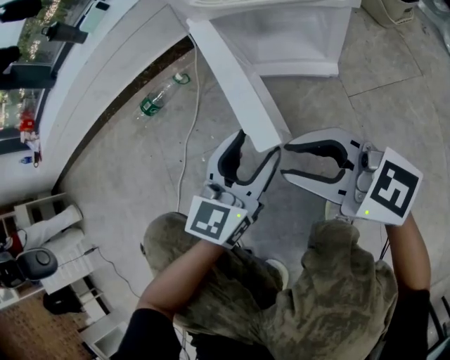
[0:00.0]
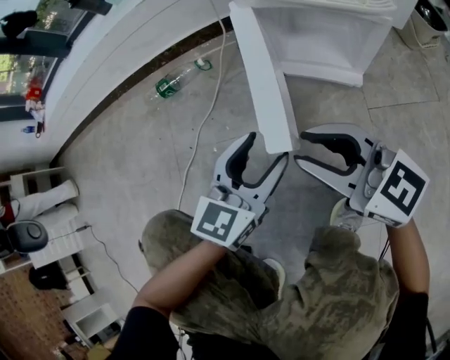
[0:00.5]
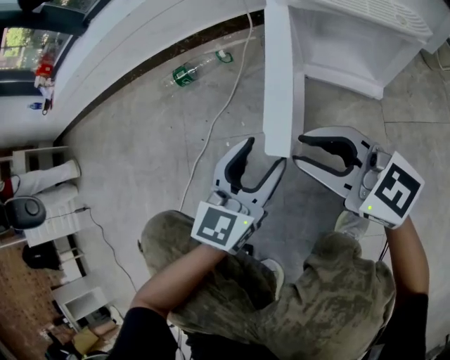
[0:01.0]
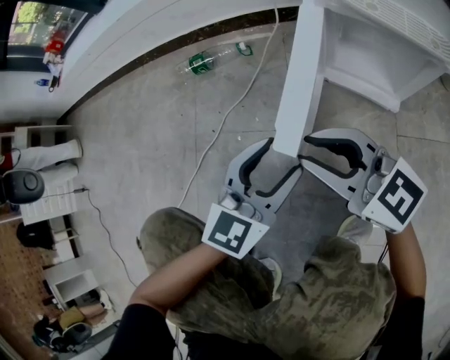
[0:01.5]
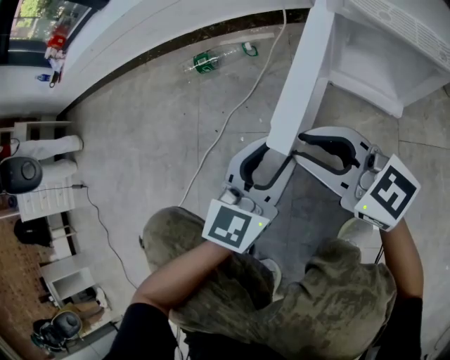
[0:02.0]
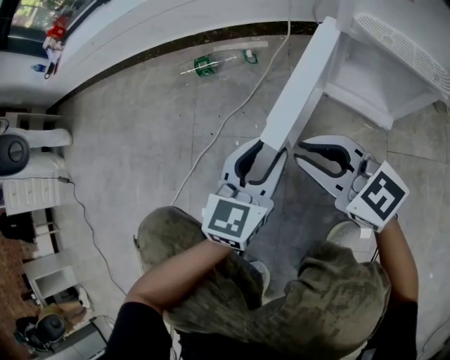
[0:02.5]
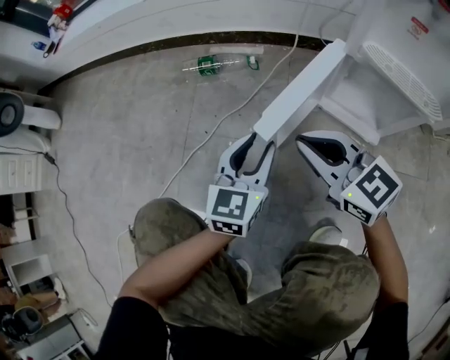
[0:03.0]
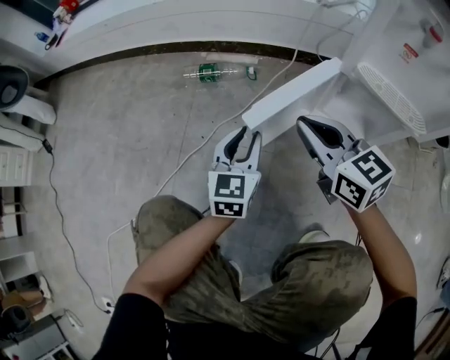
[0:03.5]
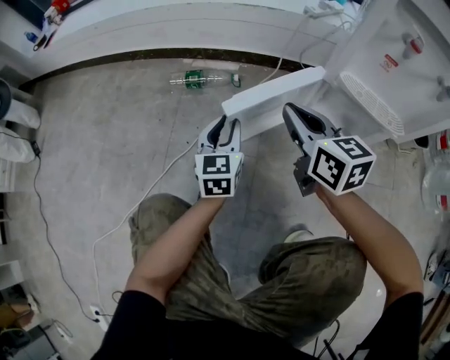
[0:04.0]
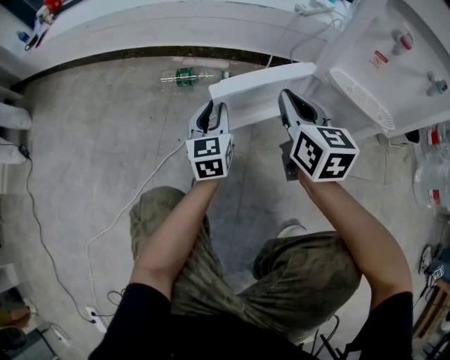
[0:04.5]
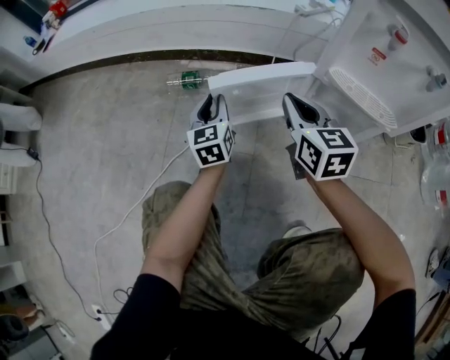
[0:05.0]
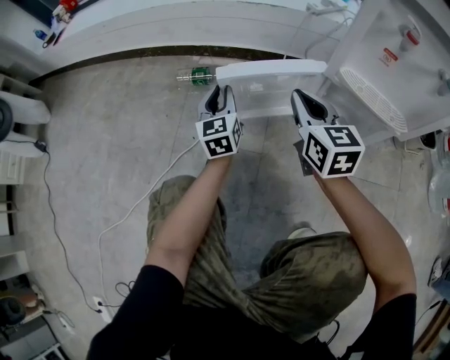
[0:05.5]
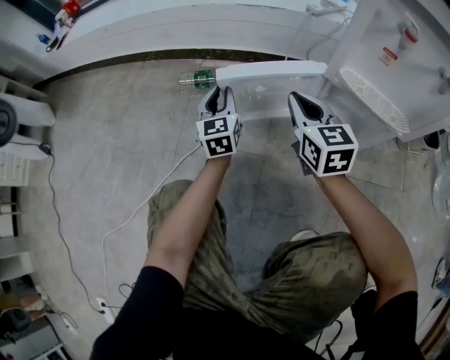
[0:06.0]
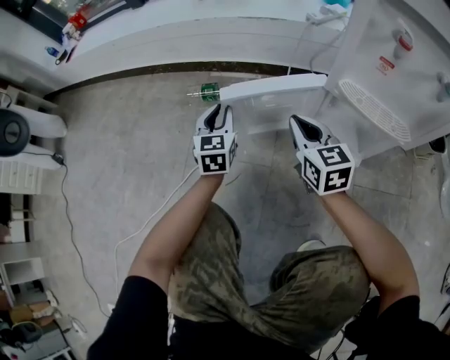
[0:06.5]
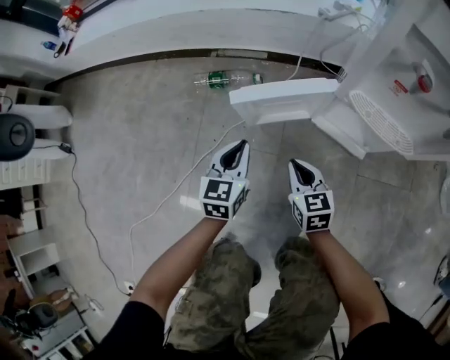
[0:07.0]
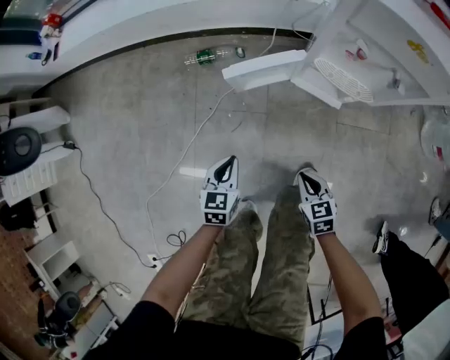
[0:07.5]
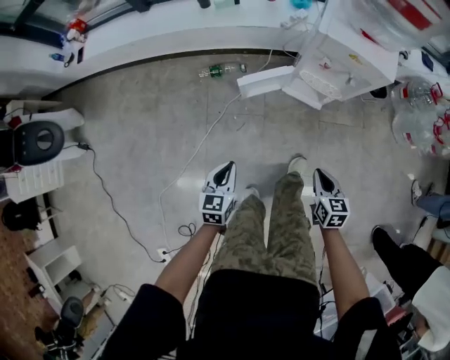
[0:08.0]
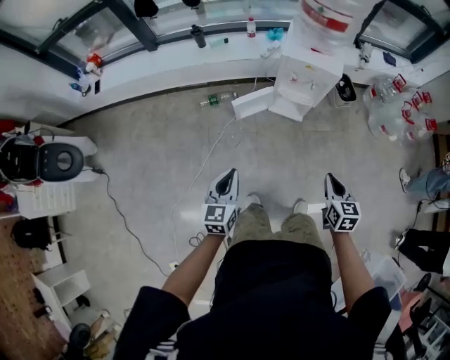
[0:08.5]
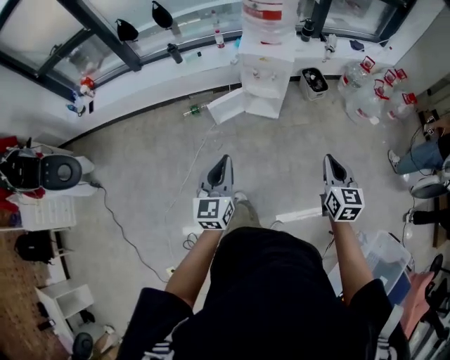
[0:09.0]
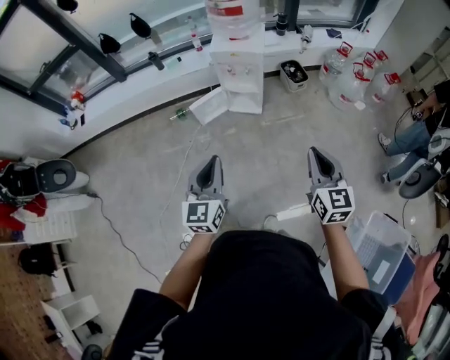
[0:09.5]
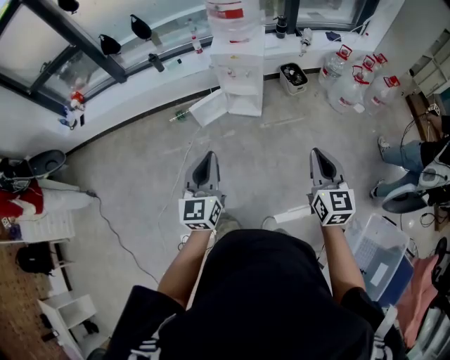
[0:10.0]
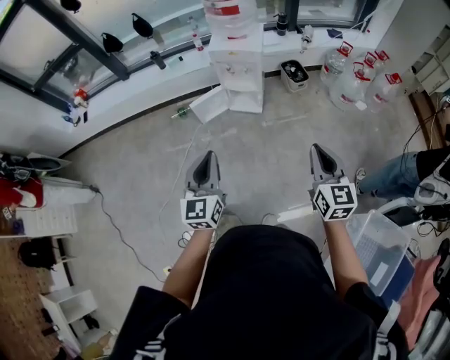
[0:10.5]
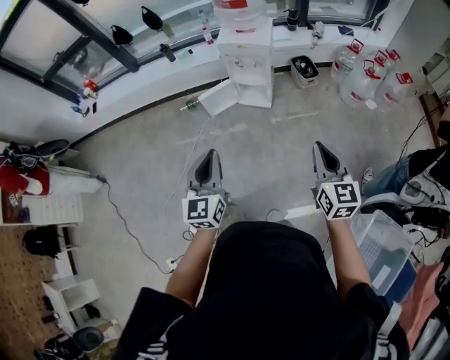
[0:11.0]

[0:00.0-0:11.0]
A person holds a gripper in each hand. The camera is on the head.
0:00.0 to 0:02.0: The left gripper heads to the left, covering about 10 cm, while the right gripper shifts approximately 15 cm to the left and forward.
0:02.0 to 0:03.5: The left gripper is displaced forward and to the left by about 10 cm, and rotates roughly 20 degrees; the right gripper goes about 10 cm forward and upward, and closes.
0:03.5 to 0:05.5: The right gripper travels forward by approximately 5 cm, and rotates about 20 degrees, while the left gripper shifts roughly 15 cm forward.
0:05.5 to 0:07.5: The left gripper heads backward and upward, covering some 30 cm, and tips its fingers downward by about 30 degrees; the right gripper shifts roughly 30 cm backward, and tilts its fingers approximately 30 degrees downward.
0:07.5 to 0:09.0: The grippers both shift upward by about 60 cm. The right gripper changes its angle by approximately 40 degrees, while the left gripper angles its fingers upward, by roughly 30 degrees.
0:09.0 to 0:11.0: The two grippers go approximately 10 cm backward and to the right.

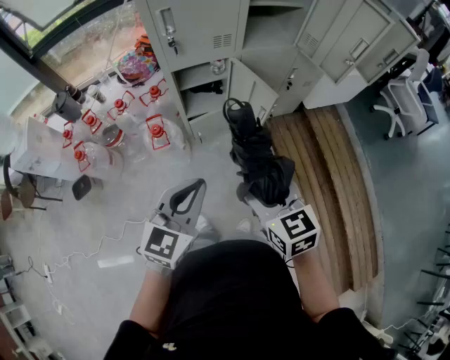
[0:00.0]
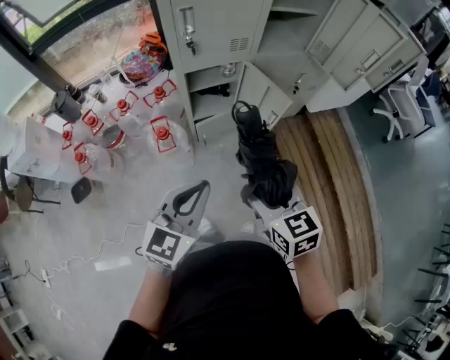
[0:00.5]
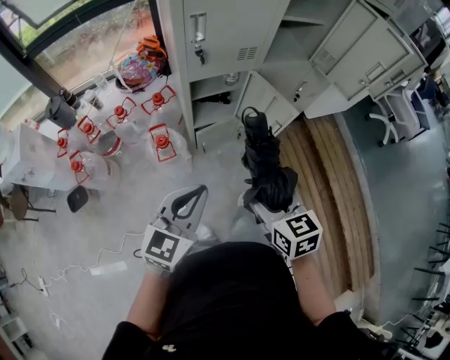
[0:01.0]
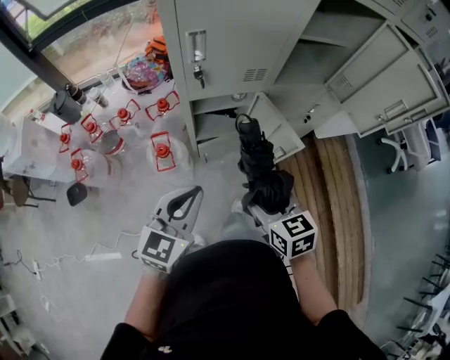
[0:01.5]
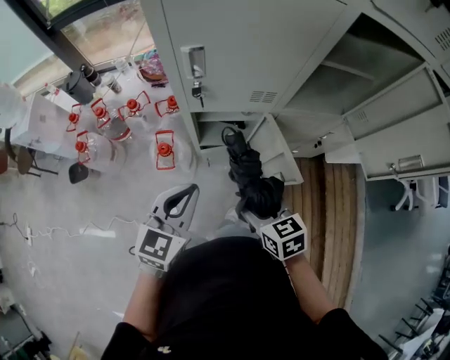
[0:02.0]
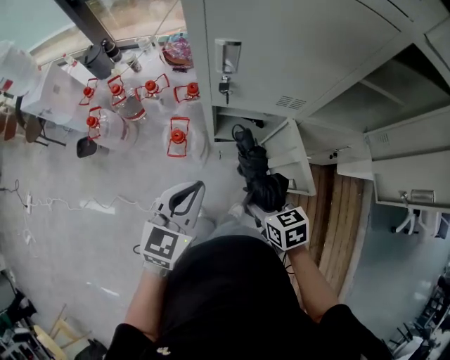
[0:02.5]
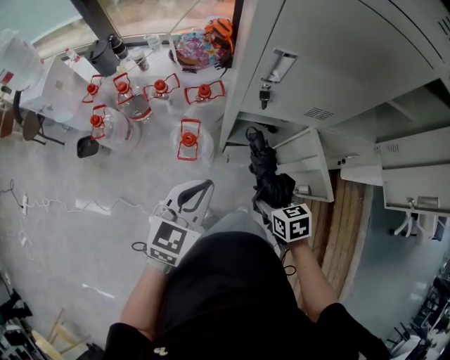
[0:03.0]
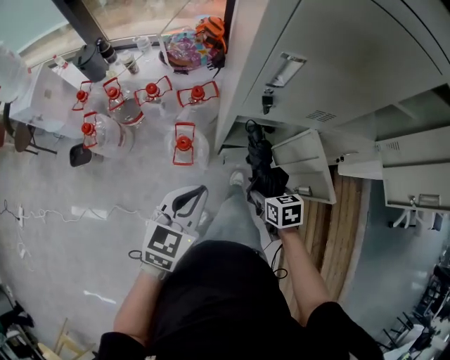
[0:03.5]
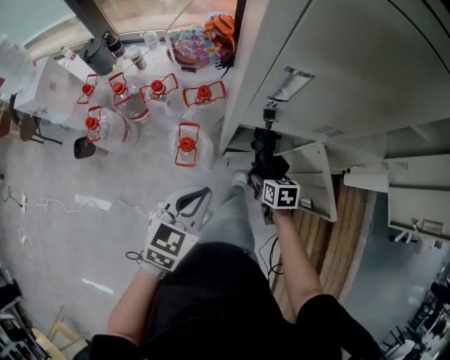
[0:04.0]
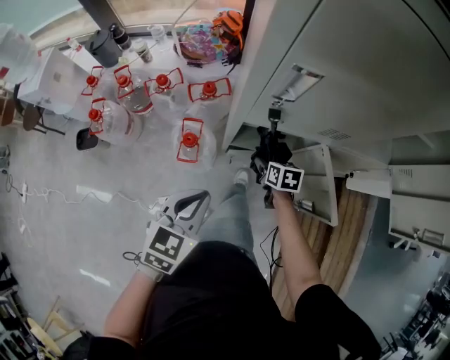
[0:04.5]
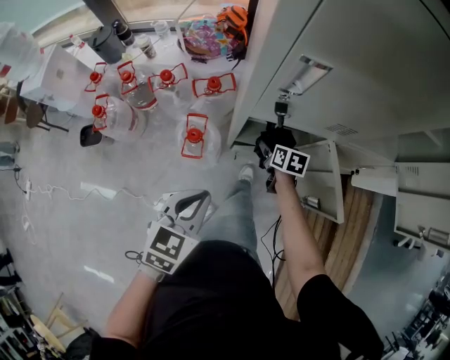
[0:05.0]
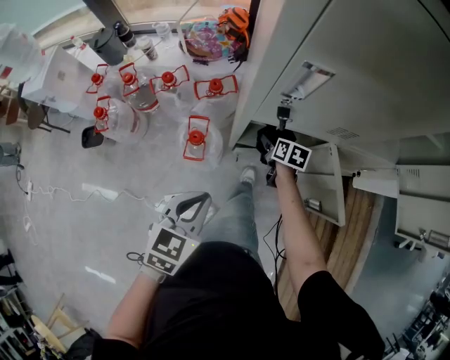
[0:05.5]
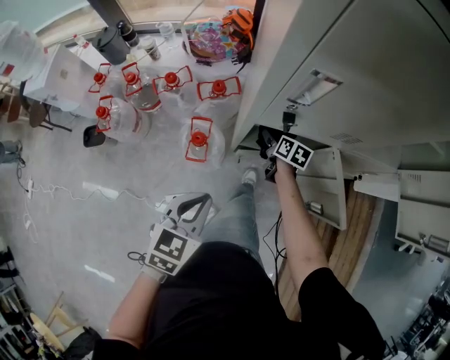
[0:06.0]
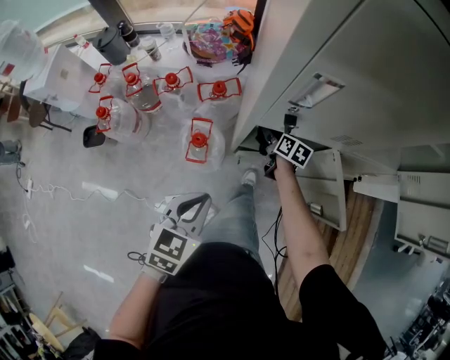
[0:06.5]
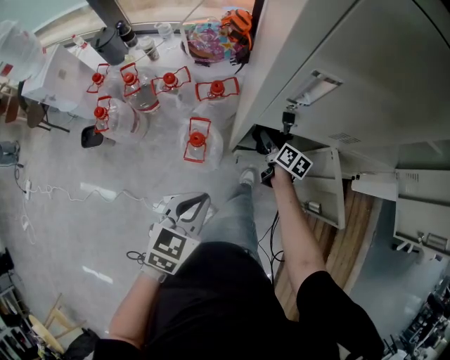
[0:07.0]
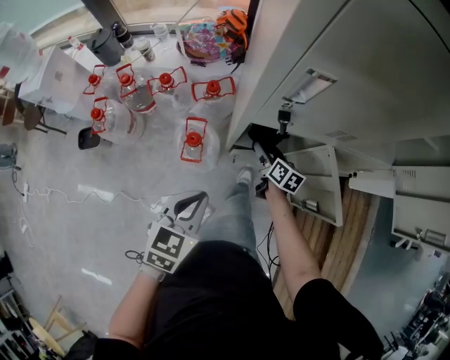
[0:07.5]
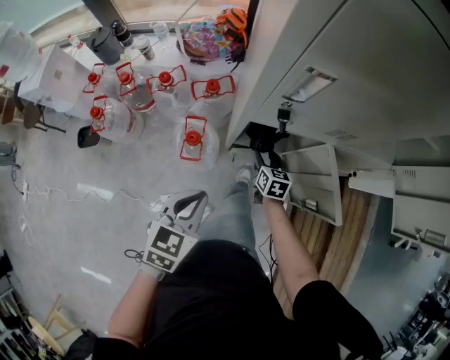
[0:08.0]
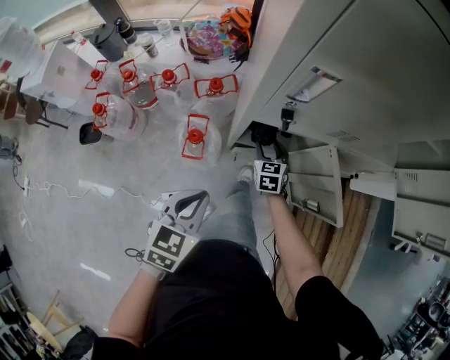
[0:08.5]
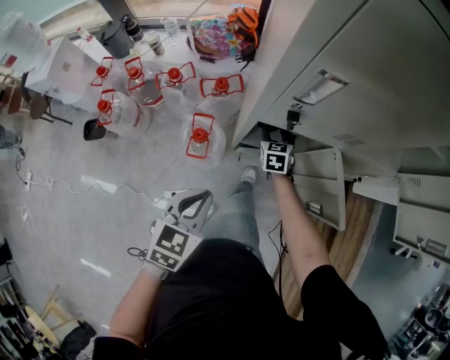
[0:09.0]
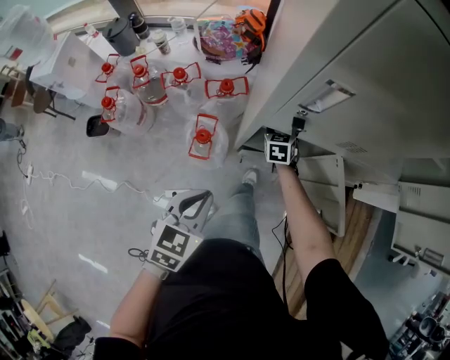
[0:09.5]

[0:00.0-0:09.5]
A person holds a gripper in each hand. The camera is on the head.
0:00.0 to 0:02.0: The left gripper travels forward by some 25 cm, while the right gripper is displaced forward and downward by some 25 cm, and swivels roughly 20 degrees.
0:02.0 to 0:04.0: The left gripper is displaced to the left, downward and forward by some 15 cm, while the right gripper heads downward and forward, covering about 25 cm.
0:04.0 to 0:05.5: The right gripper shifts some 10 cm forward.
0:07.5 to 0:09.5: The right gripper moves forward, some 10 cm, twists some 50 degrees counterclockwise, seen from behind, and closes up.

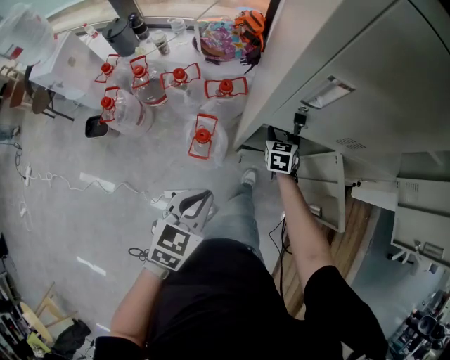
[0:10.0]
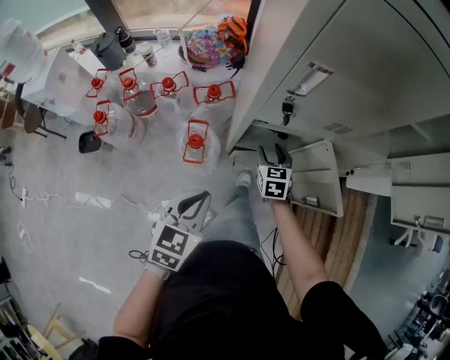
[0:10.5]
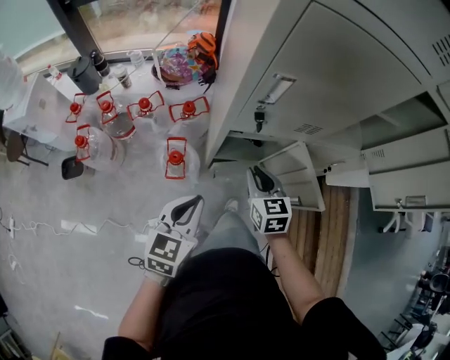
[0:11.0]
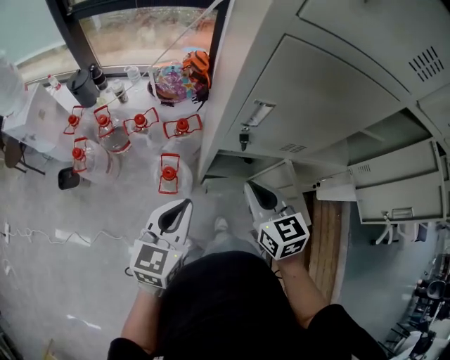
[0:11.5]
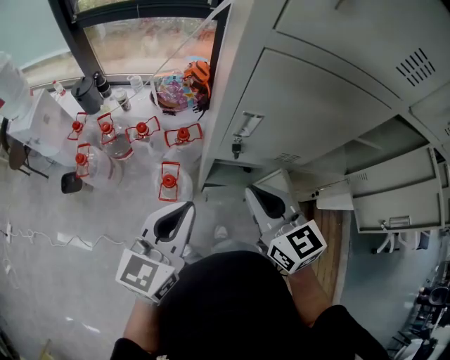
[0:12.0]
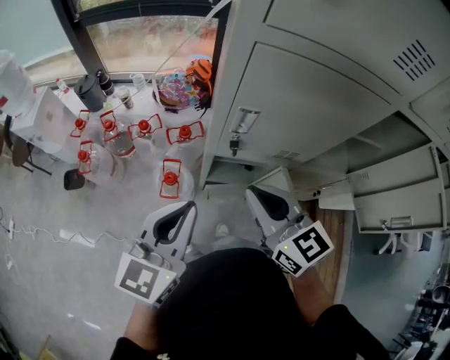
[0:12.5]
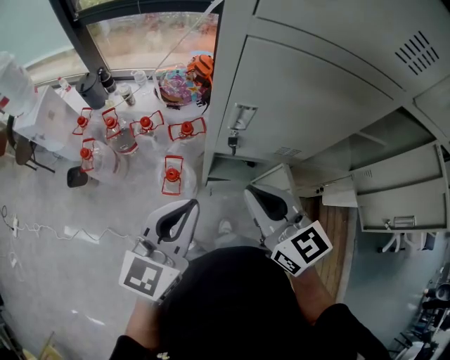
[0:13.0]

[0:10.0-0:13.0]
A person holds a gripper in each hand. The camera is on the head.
0:10.0 to 0:11.5: The left gripper is displaced upward by about 10 cm. Meanwhile the right gripper shifts some 35 cm upward and backward, turns by roughly 20 degrees, and closes up.
0:11.5 to 0:13.0: The grippers both shift upward by some 10 cm.

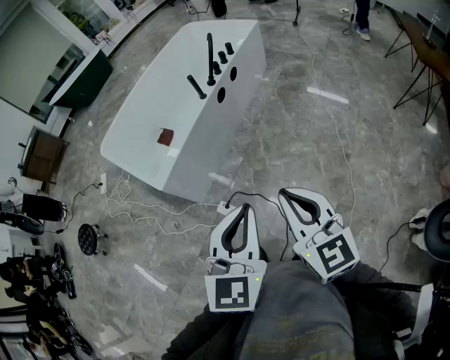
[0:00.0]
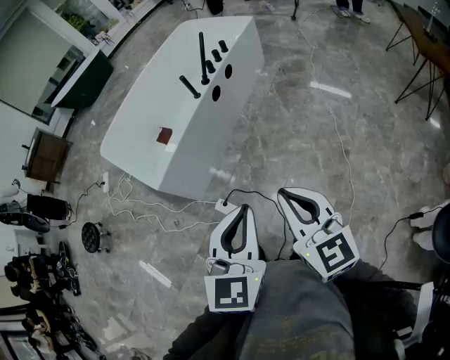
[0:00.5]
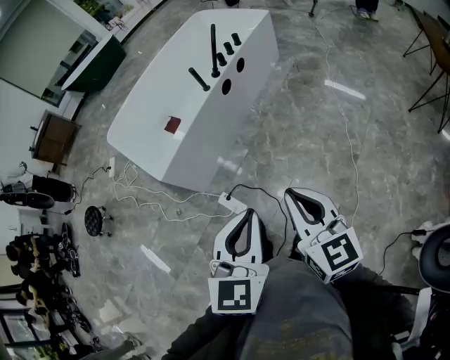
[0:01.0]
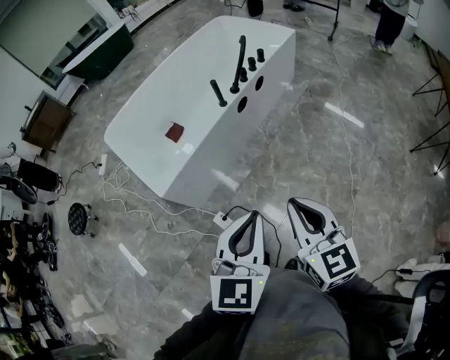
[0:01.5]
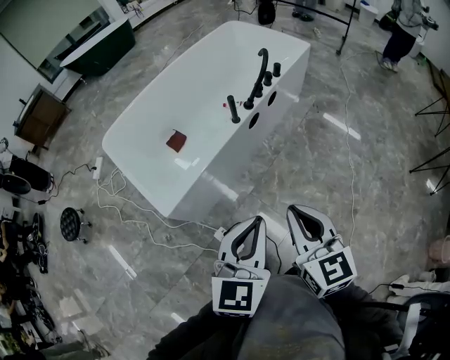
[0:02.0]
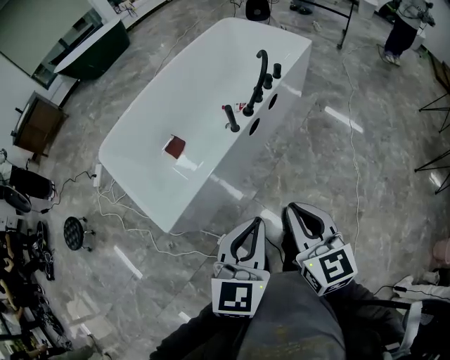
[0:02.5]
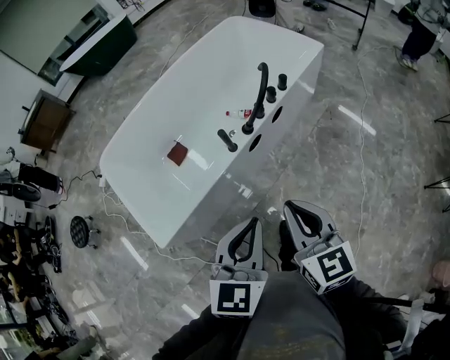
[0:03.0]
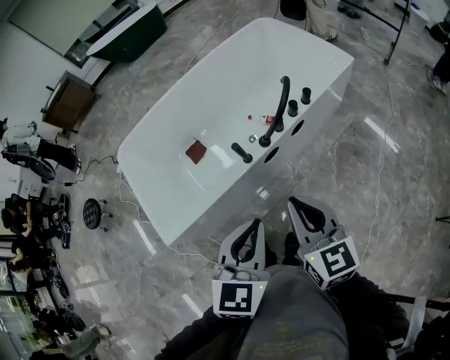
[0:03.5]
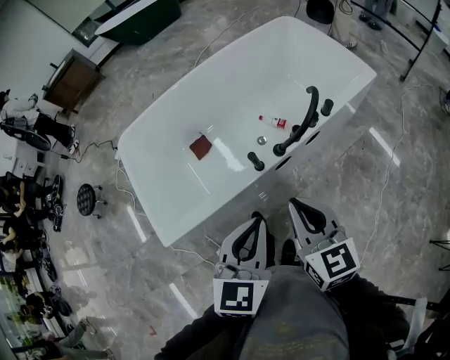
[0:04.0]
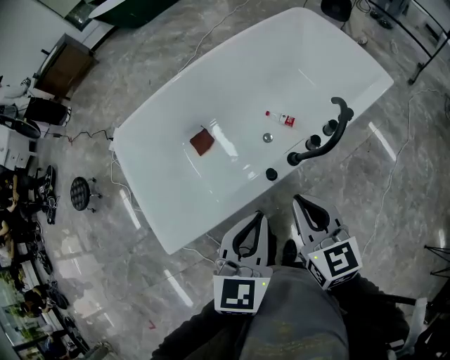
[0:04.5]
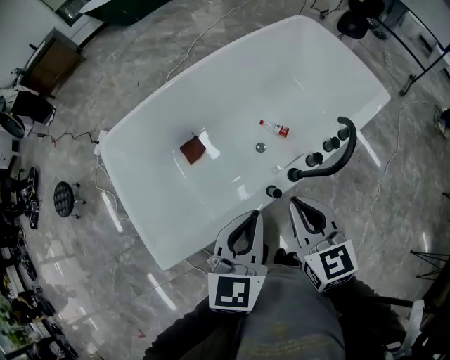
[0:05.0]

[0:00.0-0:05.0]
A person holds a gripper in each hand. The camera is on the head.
0:00.0 to 0:02.5: Both grippers travel together forward, about 30 cm.
0:02.5 to 0:05.0: Both grippers travel together forward, roughly 40 cm. The left gripper swivels approximately 20 degrees. Meanwhile the right gripper changes its angle by approximately 20 degrees.
